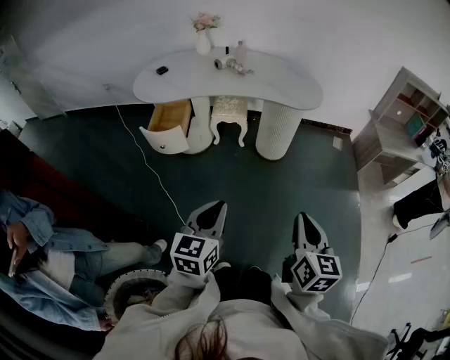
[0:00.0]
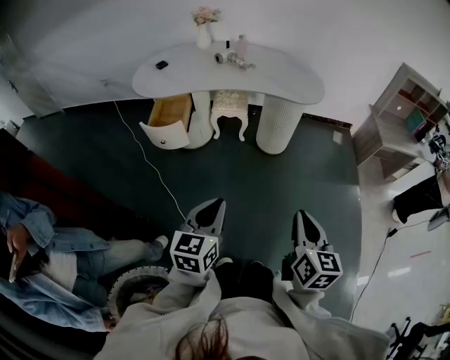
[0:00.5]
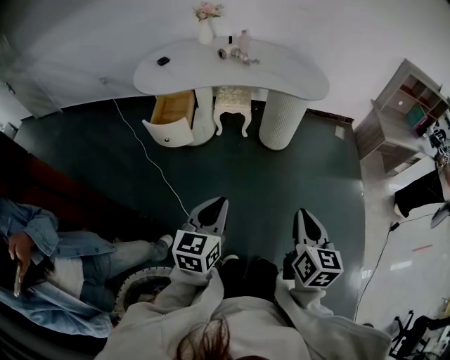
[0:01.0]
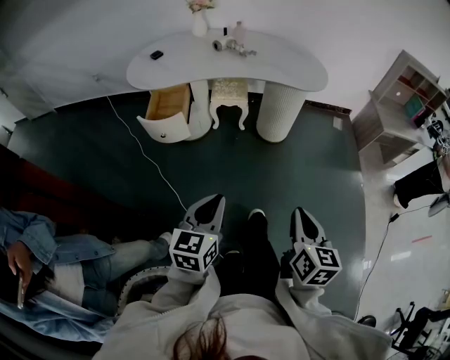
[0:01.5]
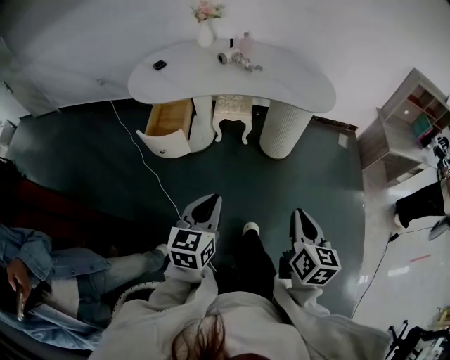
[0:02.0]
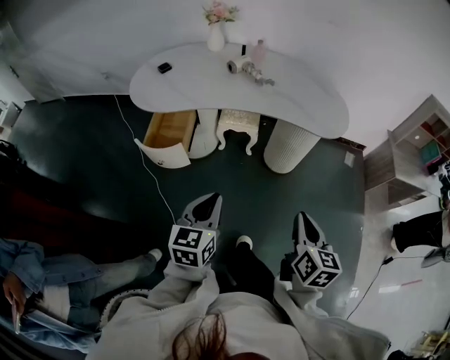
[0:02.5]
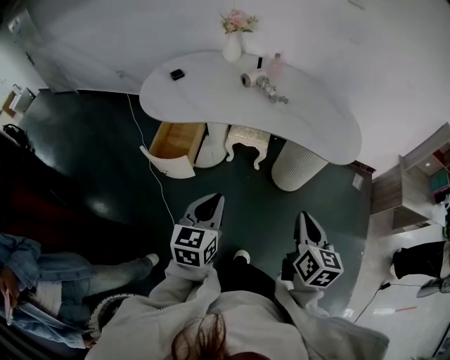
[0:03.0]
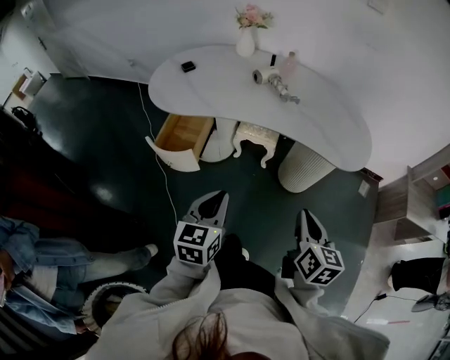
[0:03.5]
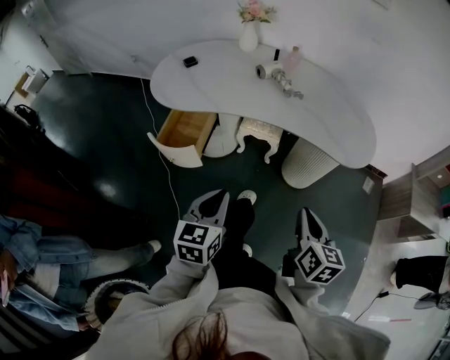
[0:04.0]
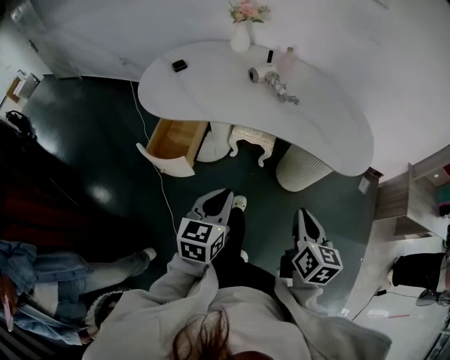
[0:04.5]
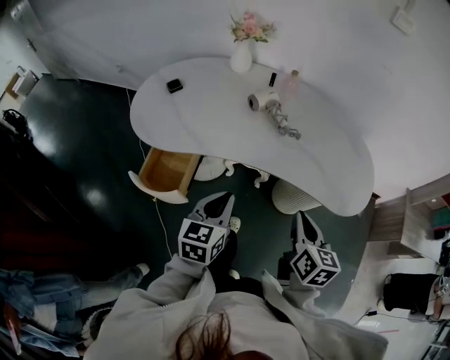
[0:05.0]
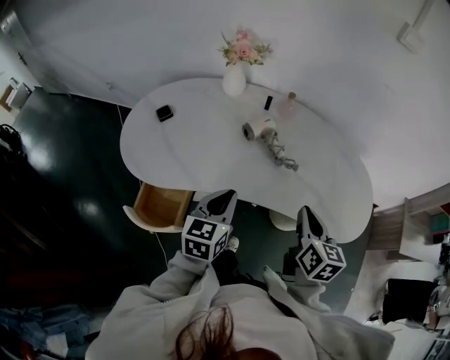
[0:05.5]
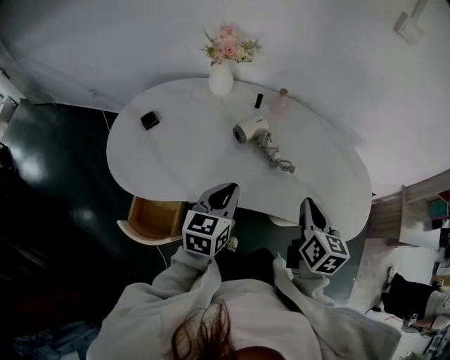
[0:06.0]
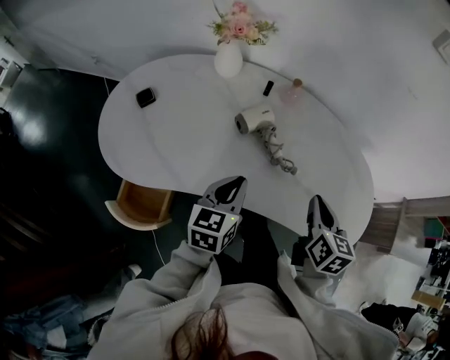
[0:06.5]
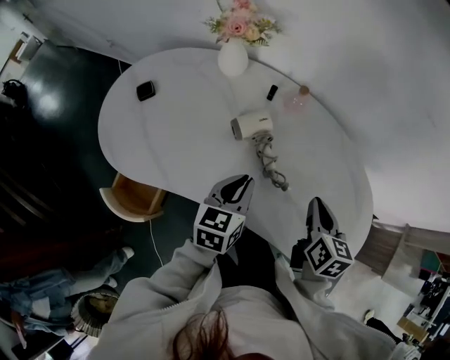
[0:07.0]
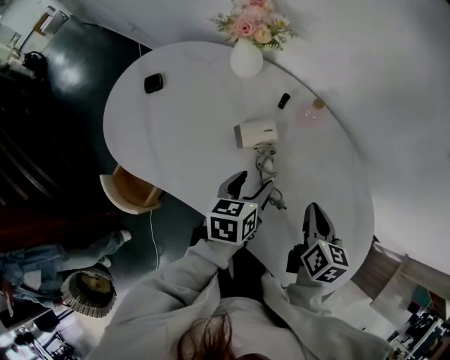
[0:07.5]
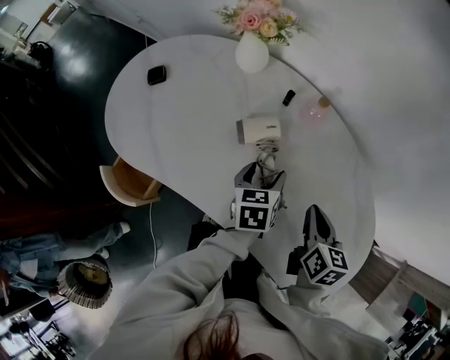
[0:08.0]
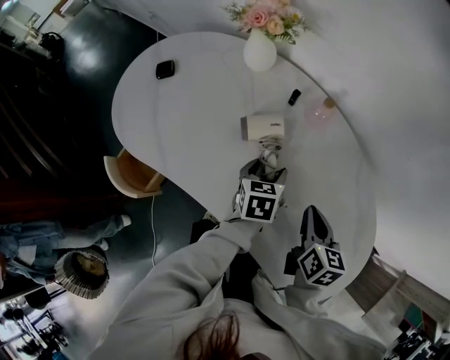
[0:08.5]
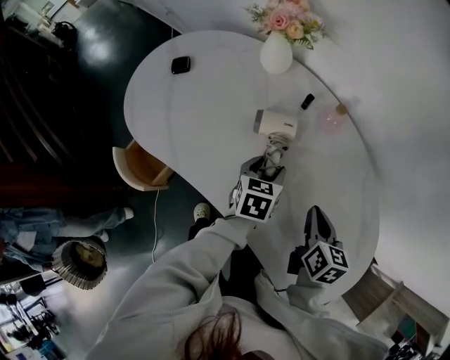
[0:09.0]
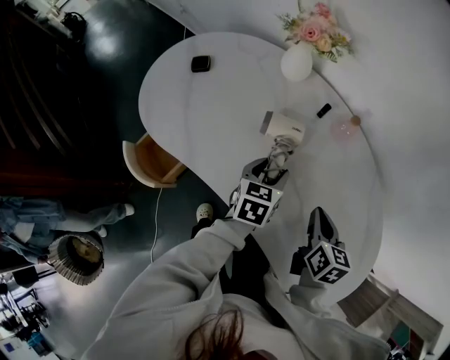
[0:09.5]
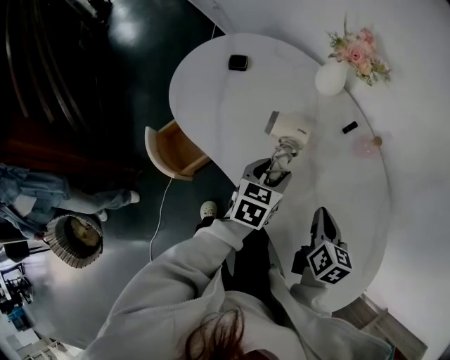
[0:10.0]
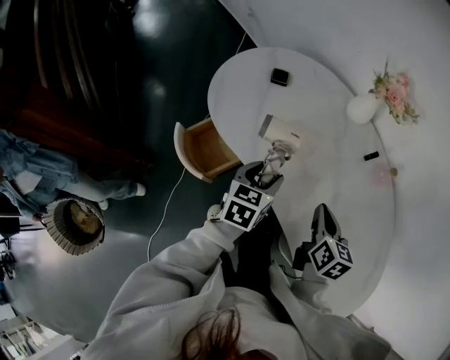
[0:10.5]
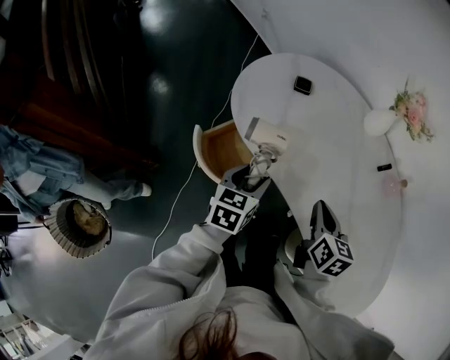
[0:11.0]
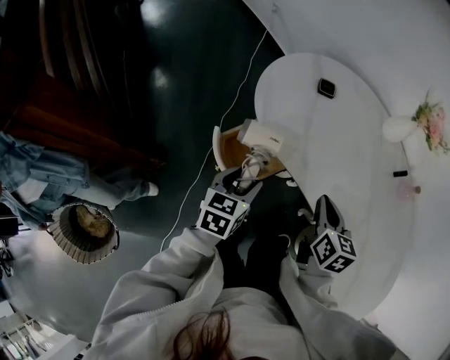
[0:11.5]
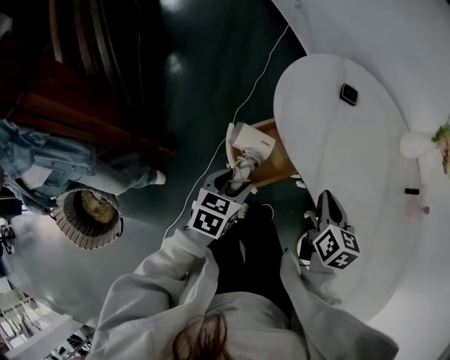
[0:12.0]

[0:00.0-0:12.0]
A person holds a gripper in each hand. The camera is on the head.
0:00.0 to 0:02.0: The grippers both shift forward and to the left by roughly 10 cm.
0:02.0 to 0:04.0: The two grippers go some 20 cm forward.
0:04.0 to 0:06.0: The grippers both shift forward by approximately 35 cm.
0:06.0 to 0:08.0: The left gripper changes place by approximately 25 cm, swivels about 40 degrees, and opens up, while the right gripper shifts by roughly 20 cm, and rotates about 30 degrees.
0:08.0 to 0:10.0: The two grippers go approximately 10 cm to the left.
0:10.0 to 0:12.0: The grippers both shift to the left by some 35 cm.

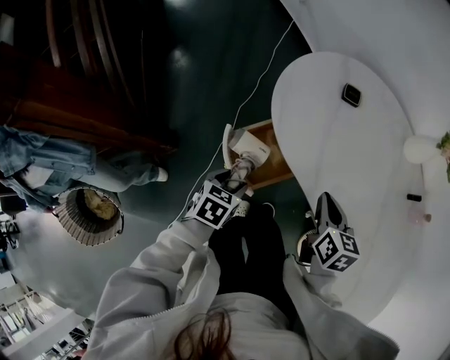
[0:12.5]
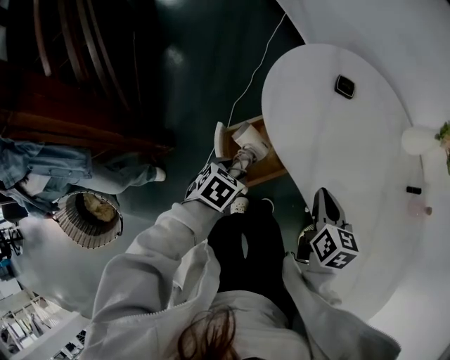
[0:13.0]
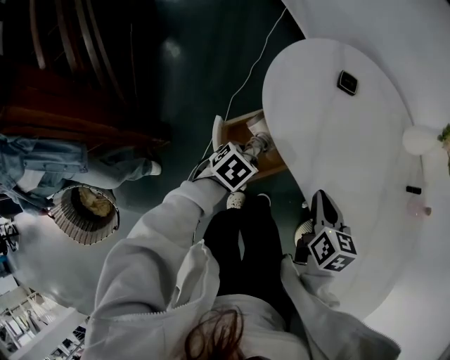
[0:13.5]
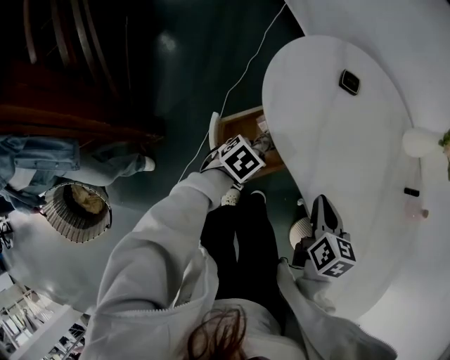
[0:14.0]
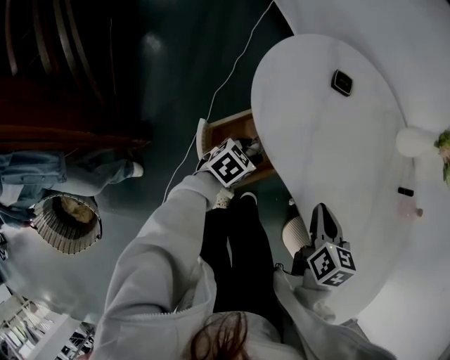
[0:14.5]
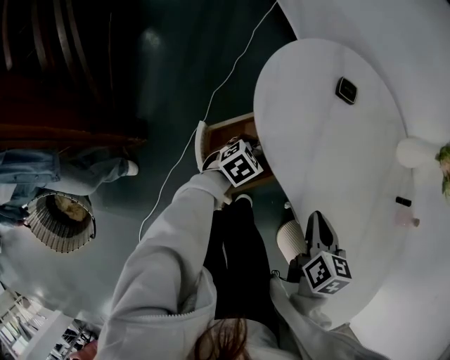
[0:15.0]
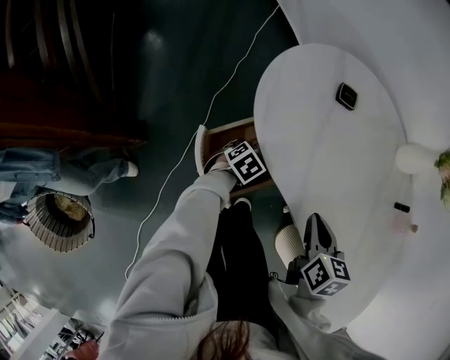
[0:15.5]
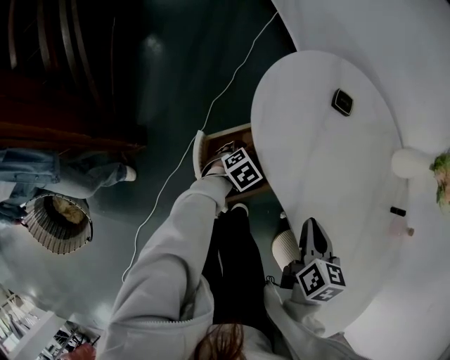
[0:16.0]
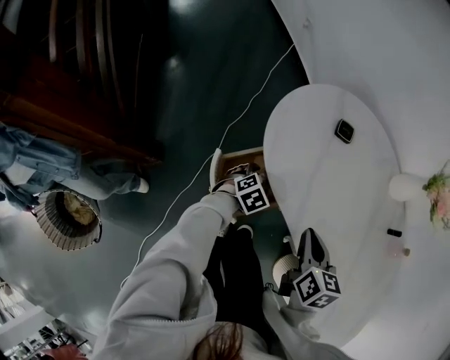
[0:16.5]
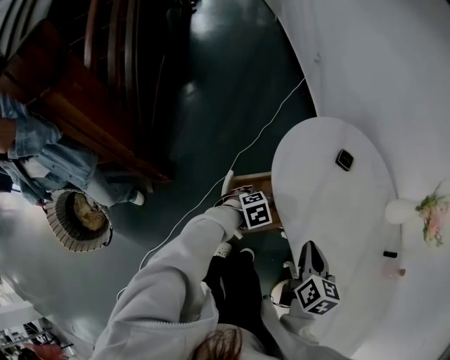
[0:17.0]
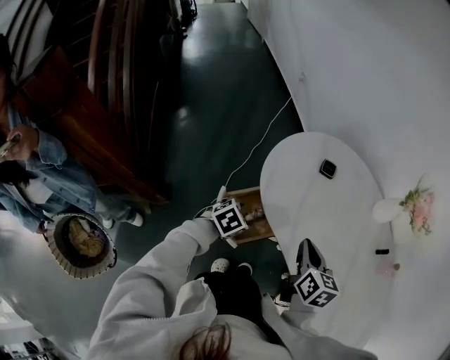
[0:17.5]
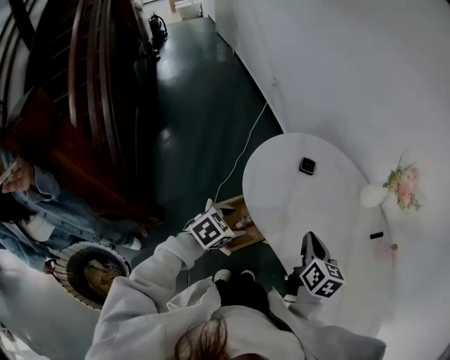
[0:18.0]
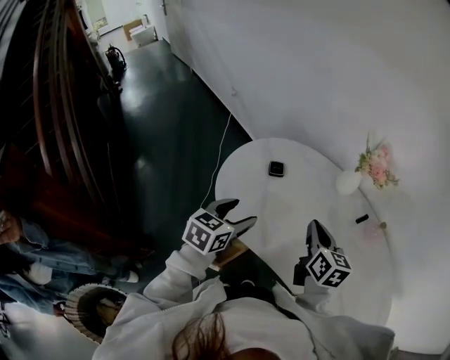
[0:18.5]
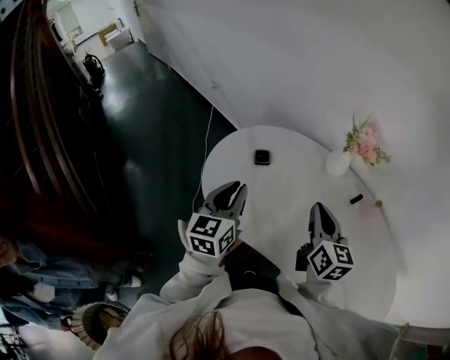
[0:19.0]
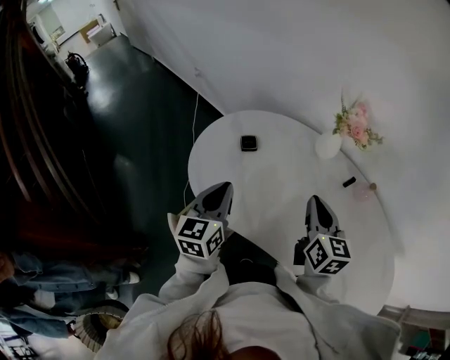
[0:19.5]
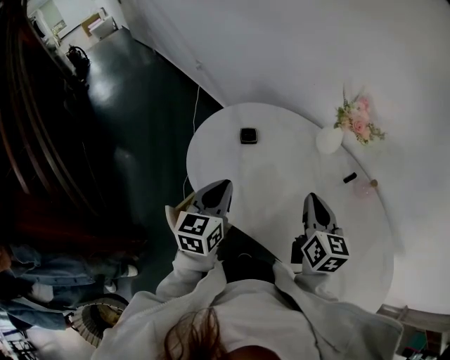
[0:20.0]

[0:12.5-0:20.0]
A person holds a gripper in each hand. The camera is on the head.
0:12.5 to 0:14.5: The left gripper heads forward, downward and to the right, covering some 15 cm, and turns by some 20 degrees.
0:14.5 to 0:16.5: The left gripper travels downward and back again, about 10 cm each way. The right gripper changes place by approximately 5 cm.
0:16.5 to 0:18.0: The right gripper is displaced upward and forward by about 10 cm. The left gripper shifts about 20 cm upward.
0:18.0 to 0:20.0: The left gripper travels upward, forward and to the right by approximately 20 cm, angles its fingers upward, by approximately 30 degrees, and closes its fingers; the right gripper goes approximately 10 cm to the right and upward, and changes its angle by roughly 20 degrees.

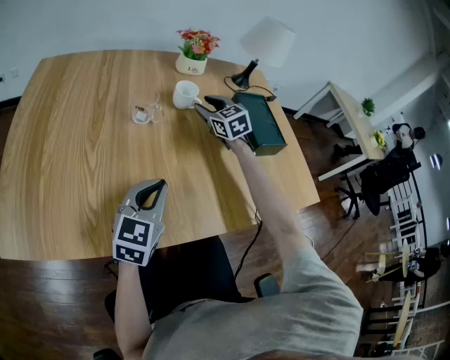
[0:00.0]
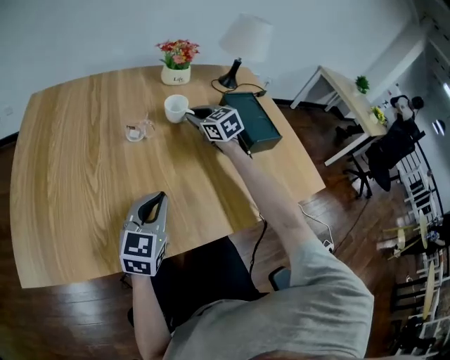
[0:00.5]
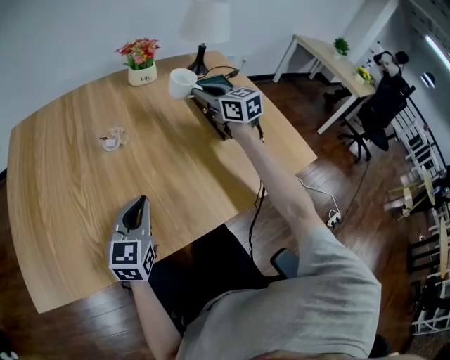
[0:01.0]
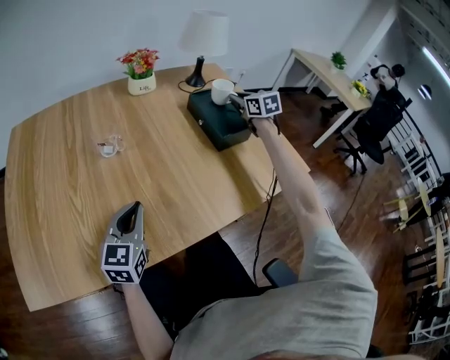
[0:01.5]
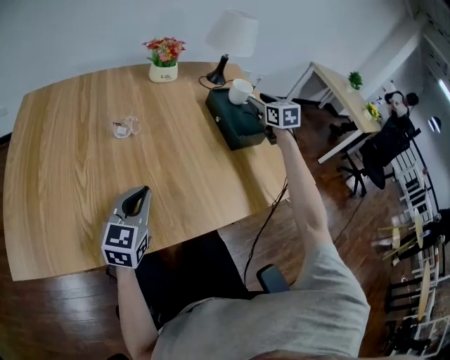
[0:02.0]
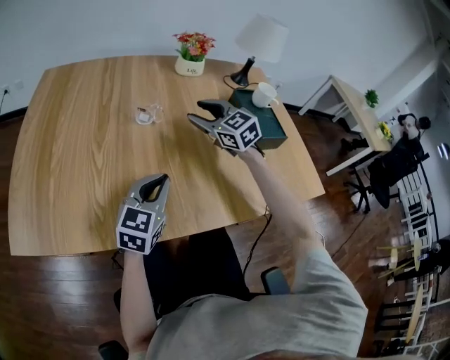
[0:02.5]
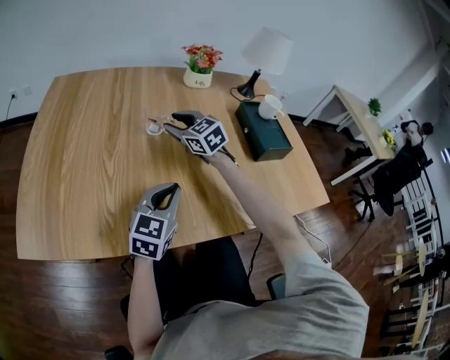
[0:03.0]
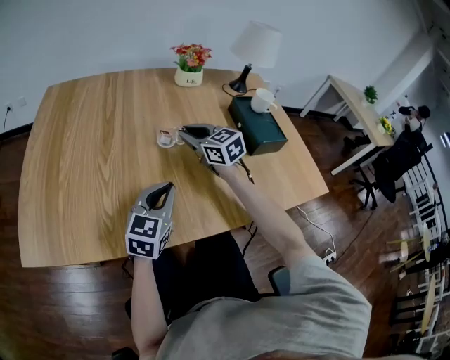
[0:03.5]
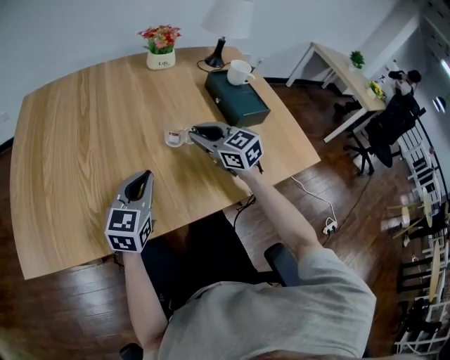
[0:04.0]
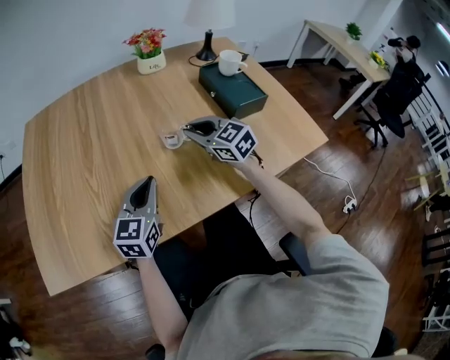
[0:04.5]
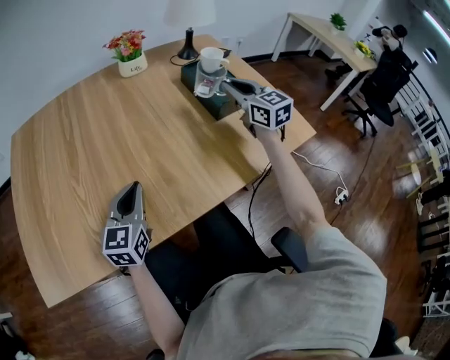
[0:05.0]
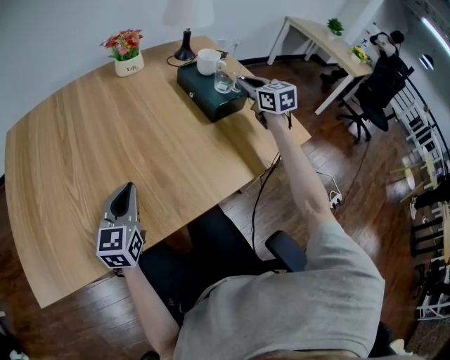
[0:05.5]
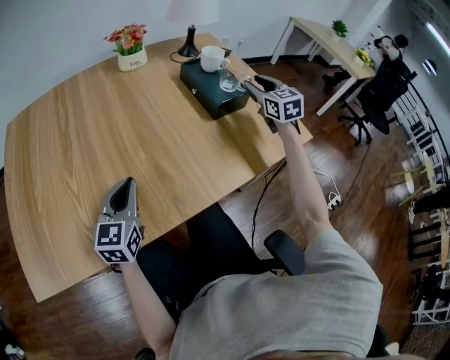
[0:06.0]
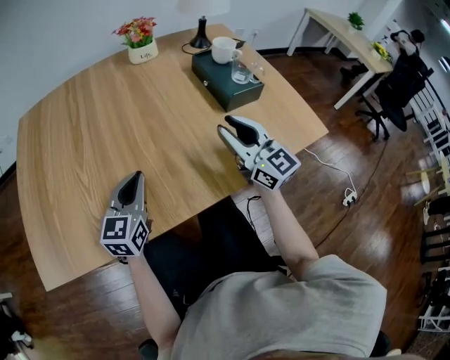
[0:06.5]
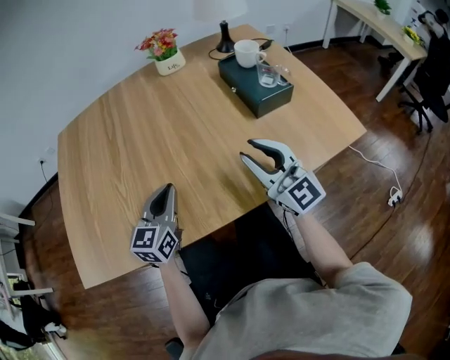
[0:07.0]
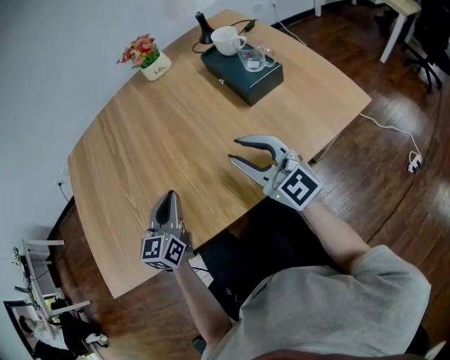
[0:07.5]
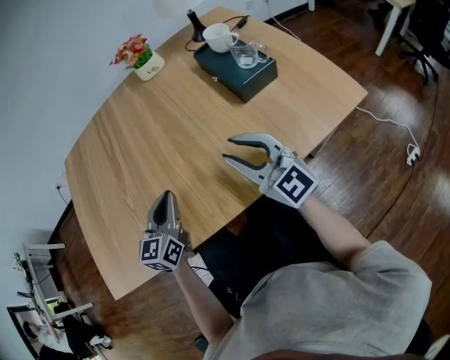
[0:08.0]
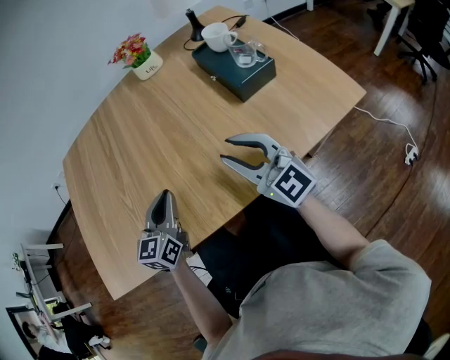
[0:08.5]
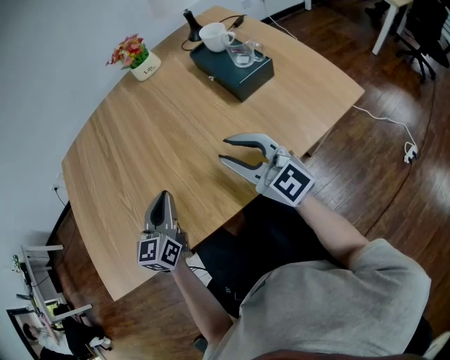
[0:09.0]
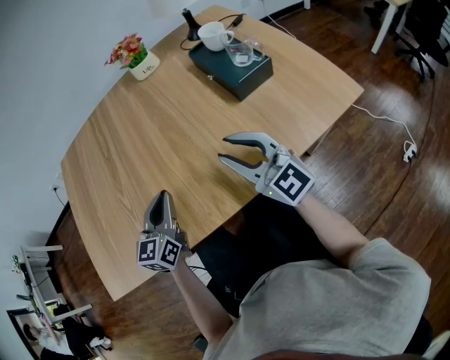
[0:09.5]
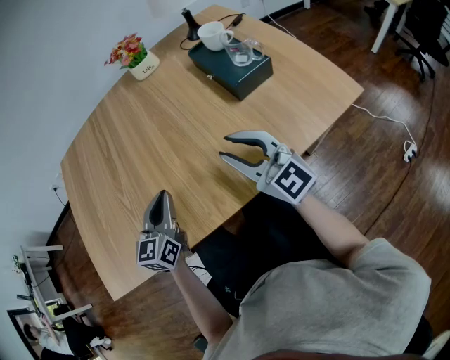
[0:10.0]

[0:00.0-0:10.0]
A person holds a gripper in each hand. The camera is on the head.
0:00.0 to 0:02.0: The right gripper heads to the right, covering roughly 30 cm, changes its angle by approximately 30 degrees, and closes and opens again.
0:02.0 to 0:04.0: The right gripper heads to the left and backward, covering some 30 cm, changes its angle by about 30 degrees, and closes up.
0:04.0 to 0:06.0: The right gripper shifts some 30 cm to the right, changes its angle by about 40 degrees, and opens up.
0:06.0 to 0:08.0: The right gripper shifts some 30 cm to the left and backward, and changes its angle by about 40 degrees.
0:08.0 to 0:10.0: Both grippers stay about where they are.
